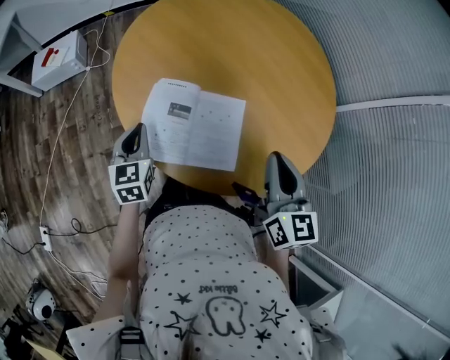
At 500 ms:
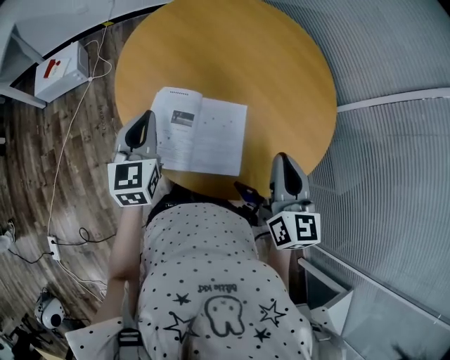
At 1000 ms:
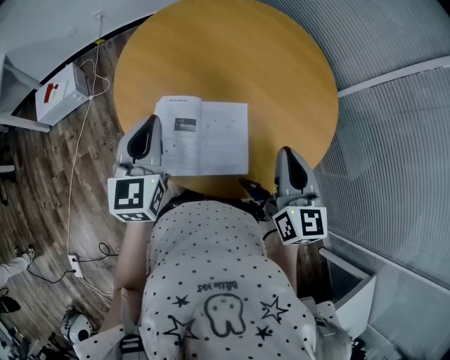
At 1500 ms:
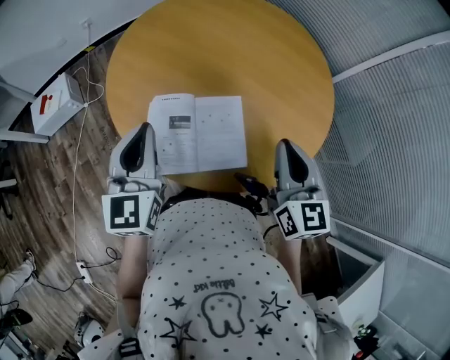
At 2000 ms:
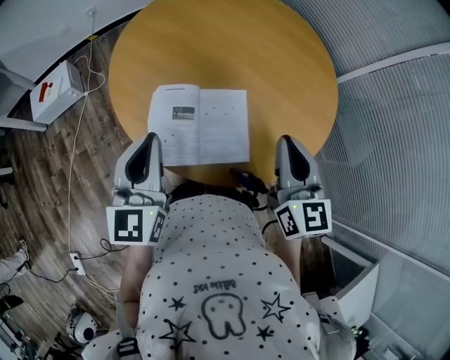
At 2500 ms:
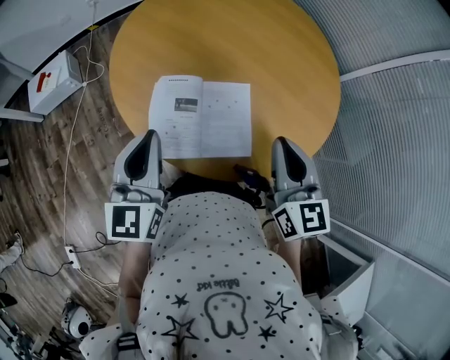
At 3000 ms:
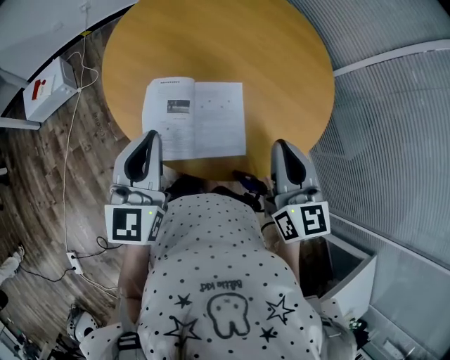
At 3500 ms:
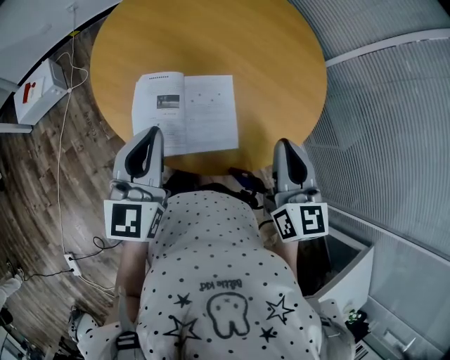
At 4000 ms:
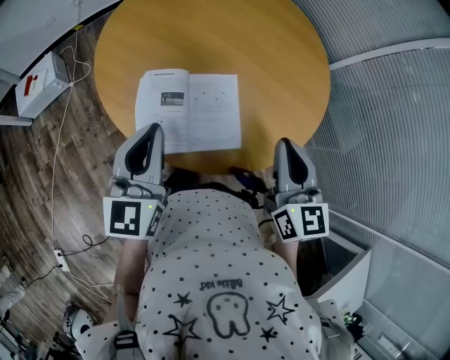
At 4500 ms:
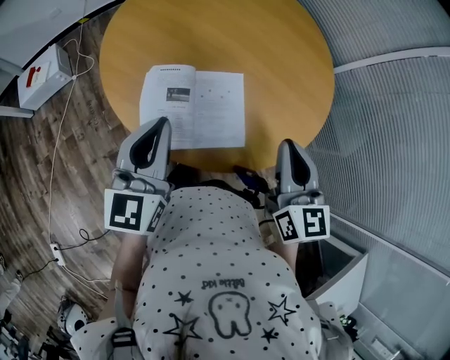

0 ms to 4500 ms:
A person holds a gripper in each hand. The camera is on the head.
0 ms to 2000 ms: The left gripper moves upward, some 15 cm, and swivels about 30 degrees.
2000 ms to 4500 ms: There are only small adjustments of the grippers.

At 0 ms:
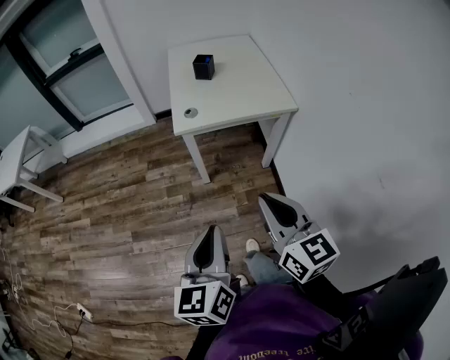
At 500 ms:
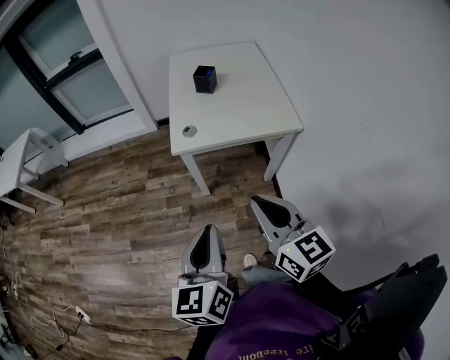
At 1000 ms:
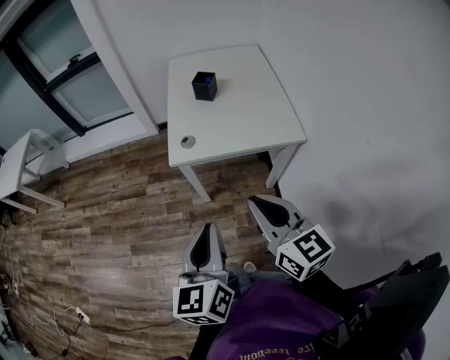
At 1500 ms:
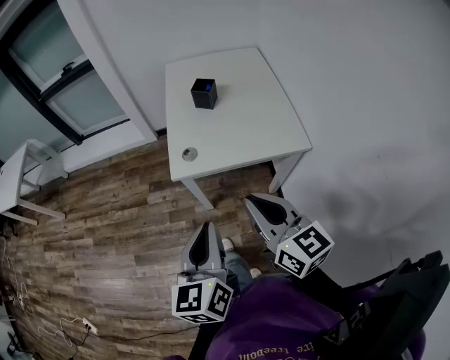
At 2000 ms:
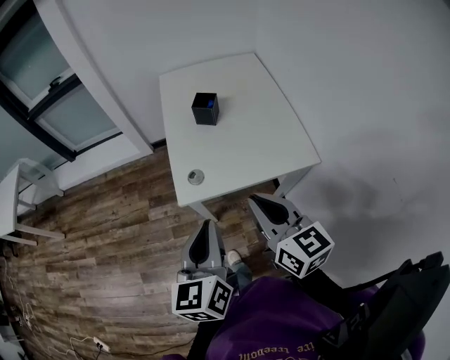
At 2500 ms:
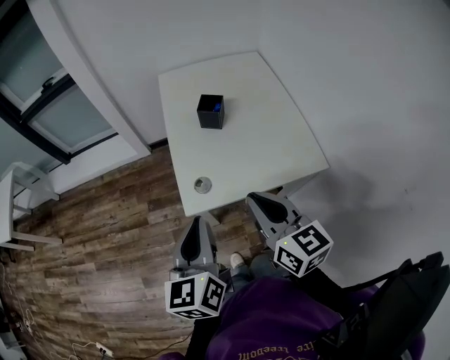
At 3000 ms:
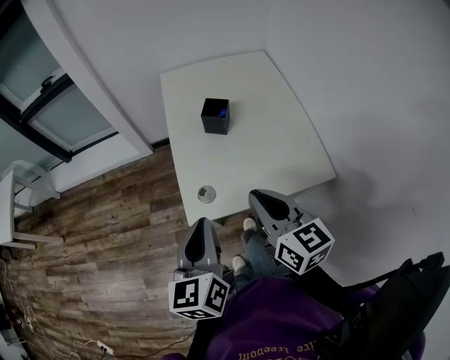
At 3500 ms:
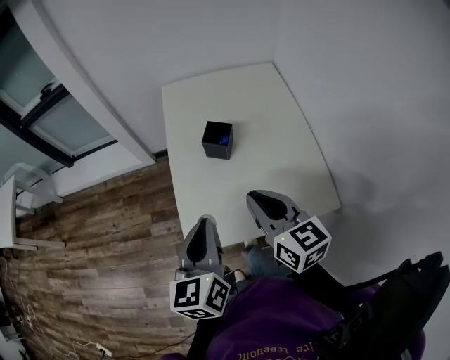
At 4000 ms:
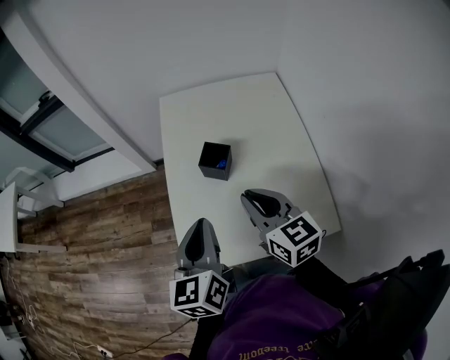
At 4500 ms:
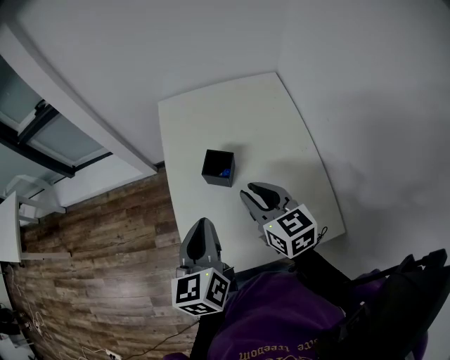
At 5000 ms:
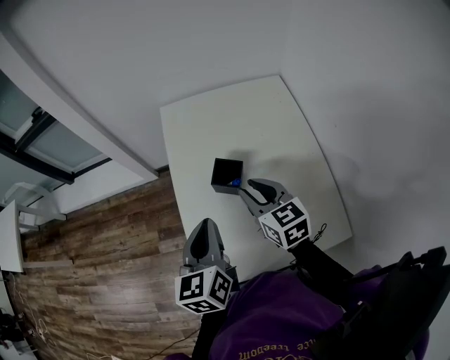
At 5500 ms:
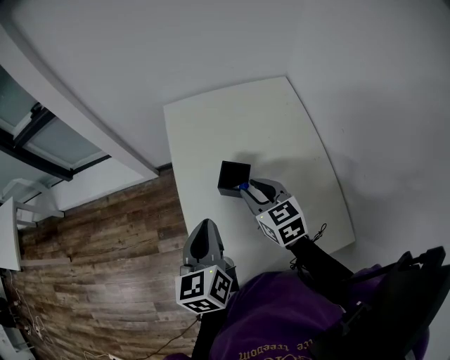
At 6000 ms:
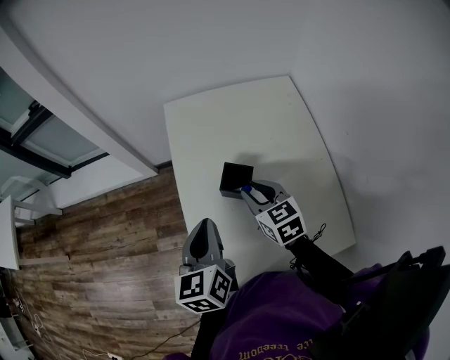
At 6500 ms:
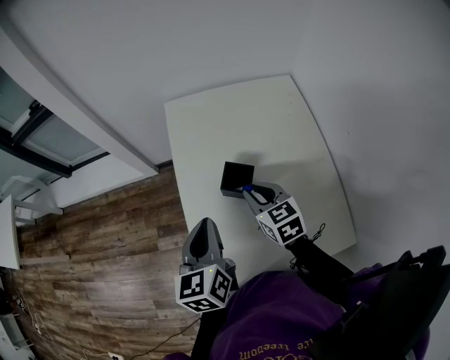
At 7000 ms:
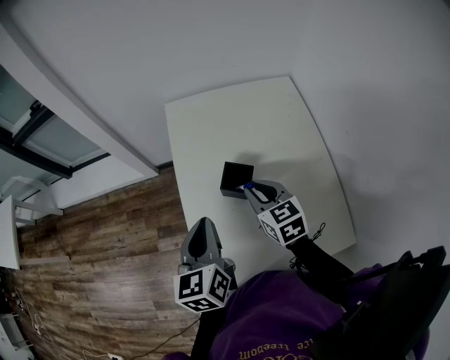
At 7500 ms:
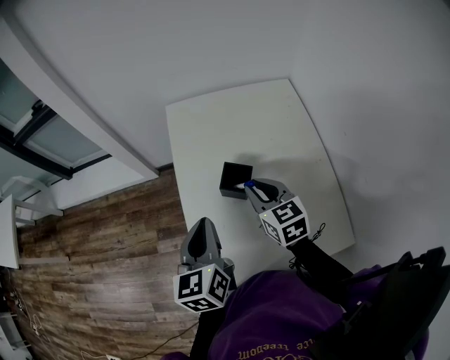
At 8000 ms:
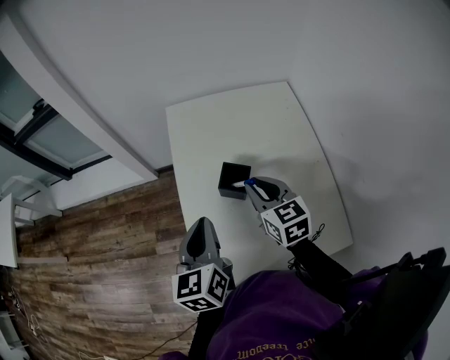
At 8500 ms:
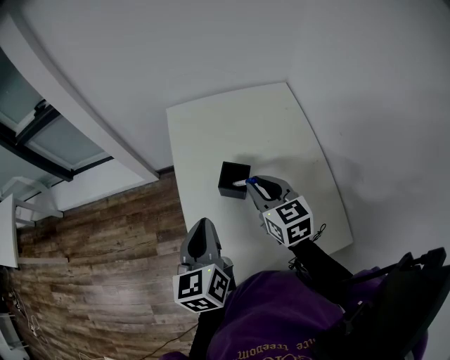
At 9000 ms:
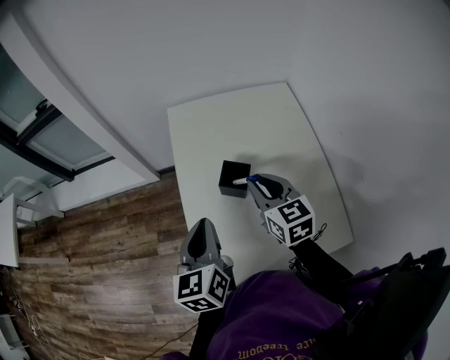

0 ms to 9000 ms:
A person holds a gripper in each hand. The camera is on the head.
0 ms to 2000 ms: The grippers both shift forward by some 30 cm.
2000 ms to 4500 ms: The grippers both shift forward by approximately 30 cm.
4500 ms to 7000 ms: The right gripper is displaced forward and downward by some 10 cm, while the left gripper is displaced forward by approximately 5 cm.
7000 ms to 9000 ms: The right gripper is displaced upward by approximately 5 cm.

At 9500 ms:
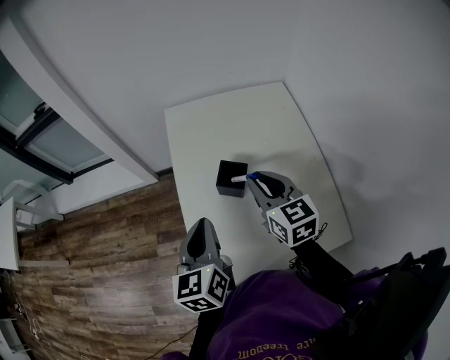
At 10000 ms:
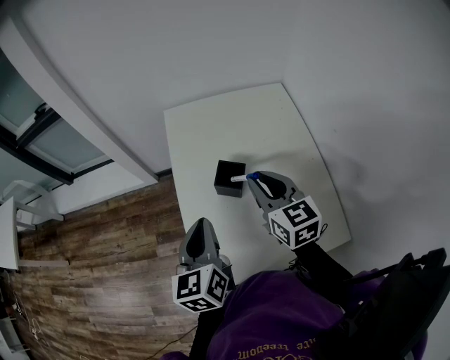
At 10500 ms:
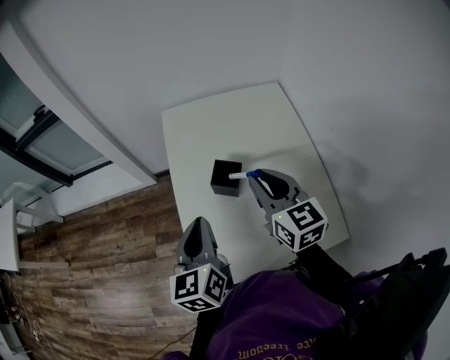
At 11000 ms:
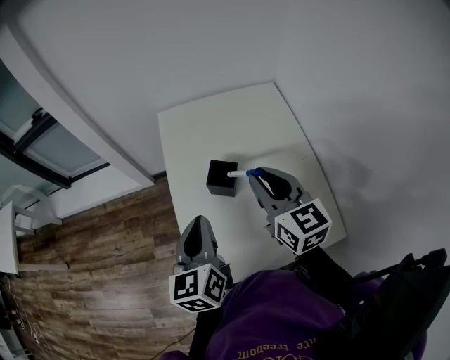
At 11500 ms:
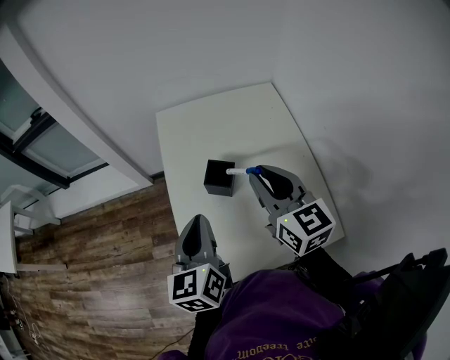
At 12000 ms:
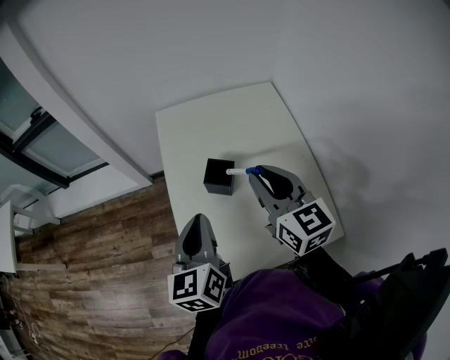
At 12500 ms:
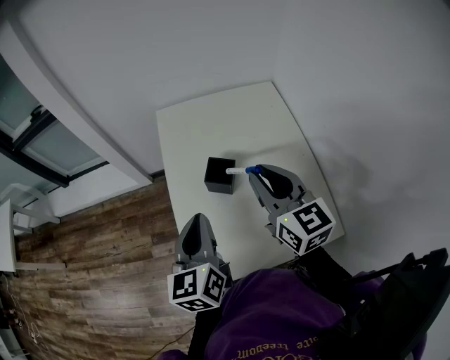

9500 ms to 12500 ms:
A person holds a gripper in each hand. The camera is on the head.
9500 ms to 11000 ms: The right gripper moves upward, roughly 5 cm.
11000 ms to 12500 ms: The grippers make only small movements.

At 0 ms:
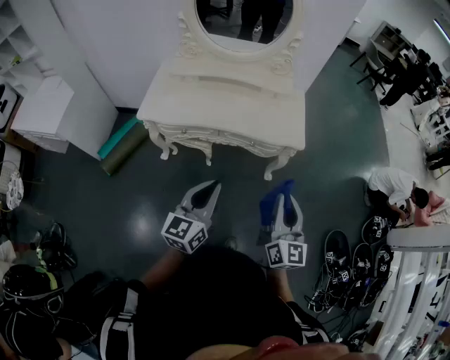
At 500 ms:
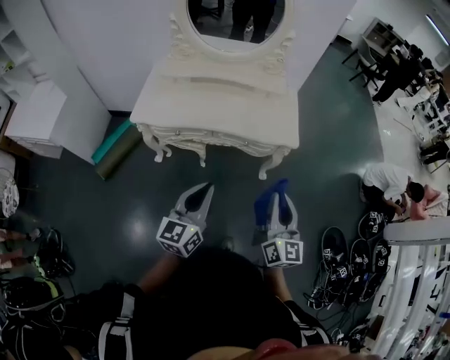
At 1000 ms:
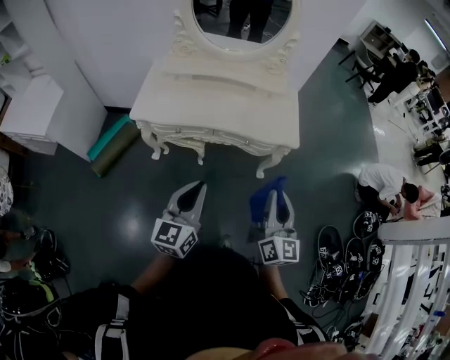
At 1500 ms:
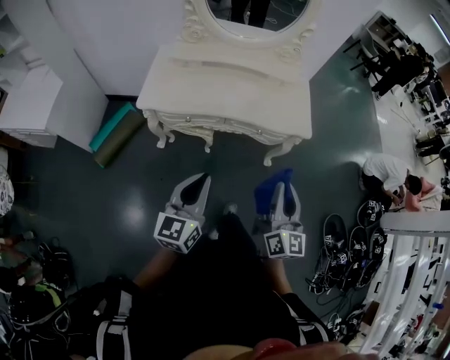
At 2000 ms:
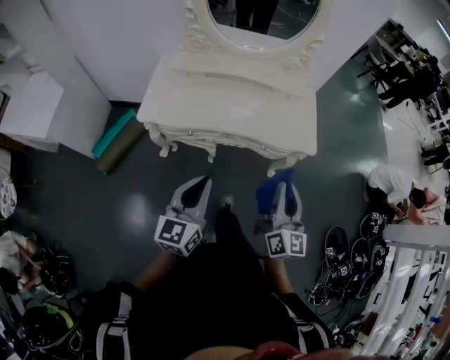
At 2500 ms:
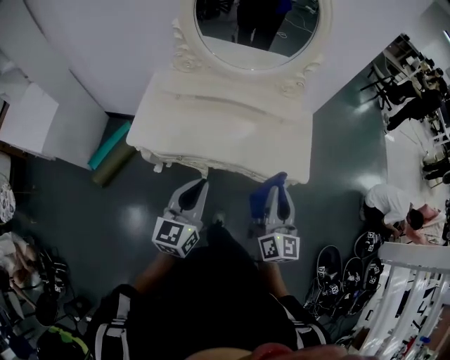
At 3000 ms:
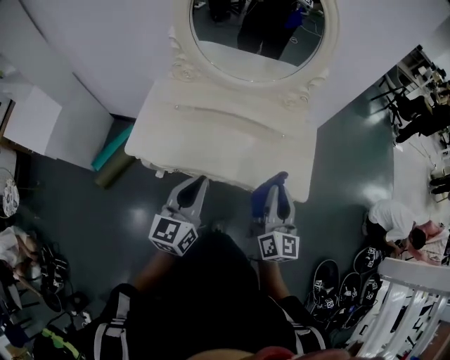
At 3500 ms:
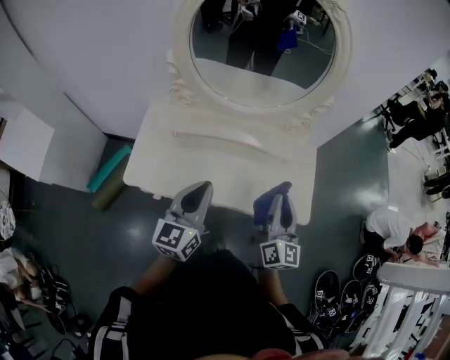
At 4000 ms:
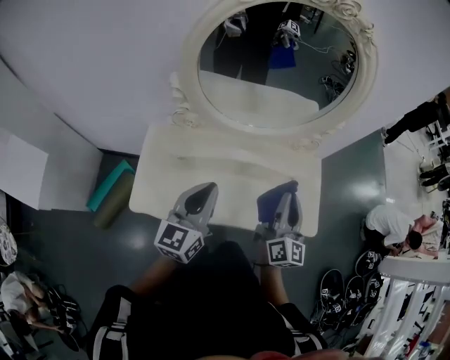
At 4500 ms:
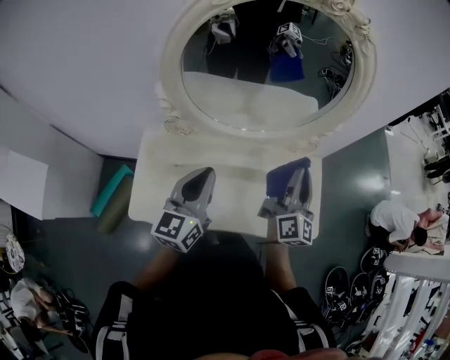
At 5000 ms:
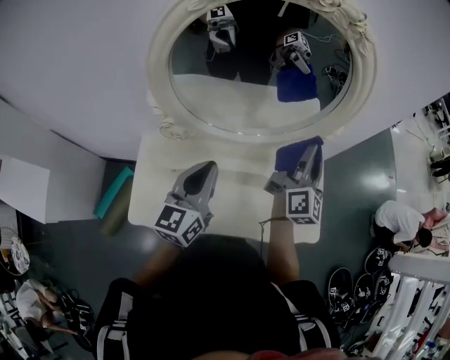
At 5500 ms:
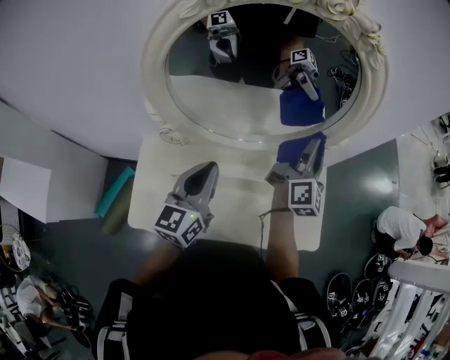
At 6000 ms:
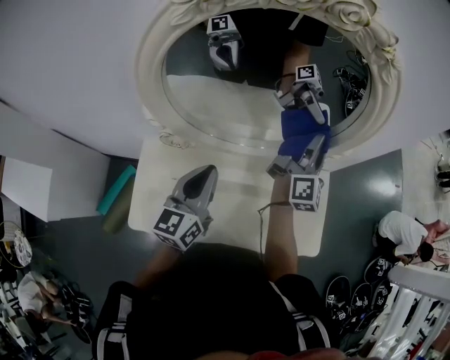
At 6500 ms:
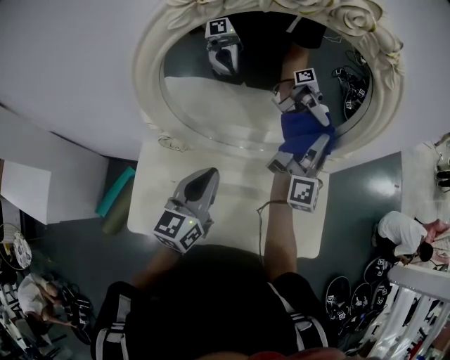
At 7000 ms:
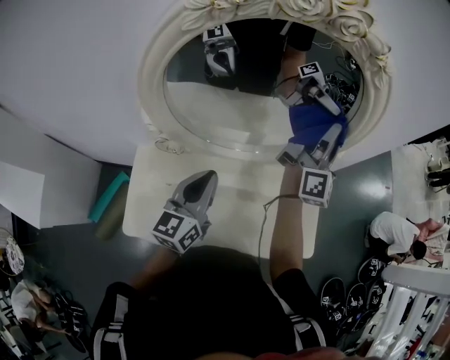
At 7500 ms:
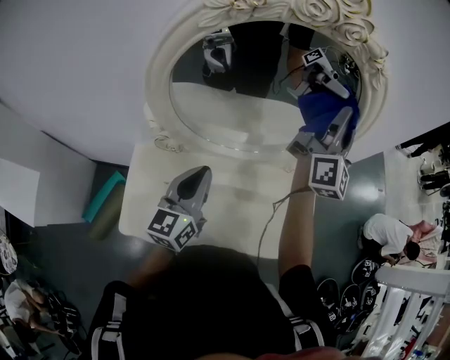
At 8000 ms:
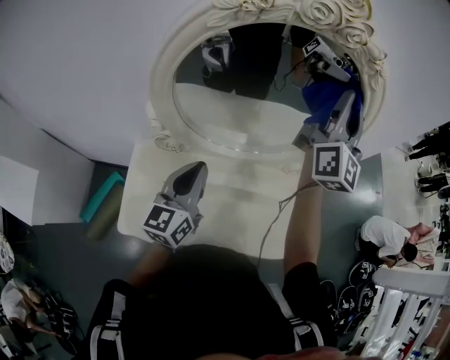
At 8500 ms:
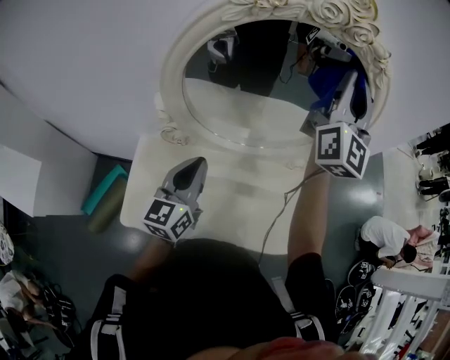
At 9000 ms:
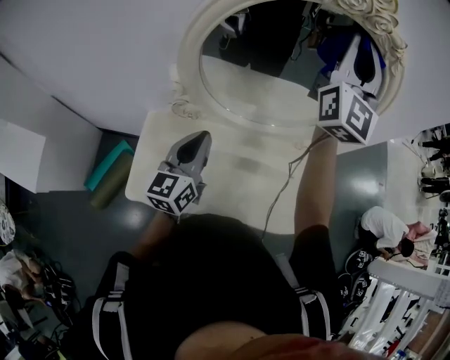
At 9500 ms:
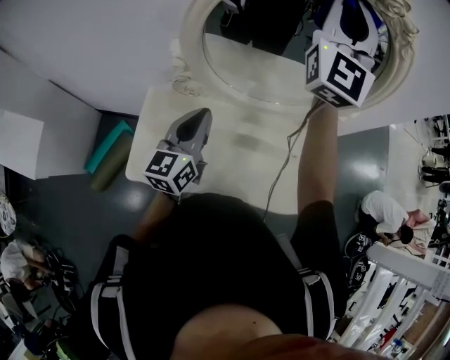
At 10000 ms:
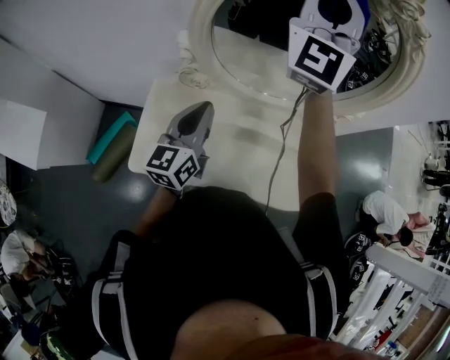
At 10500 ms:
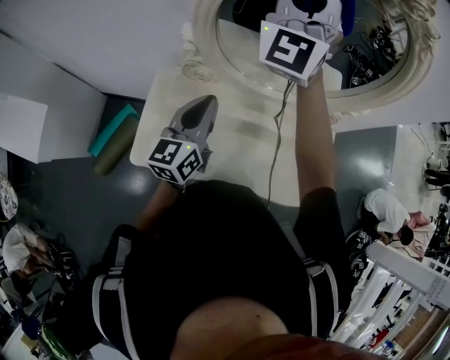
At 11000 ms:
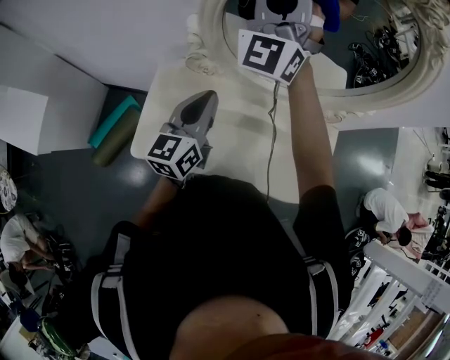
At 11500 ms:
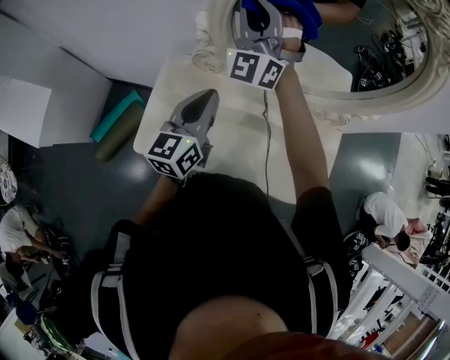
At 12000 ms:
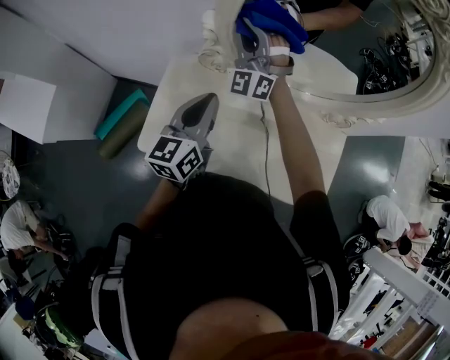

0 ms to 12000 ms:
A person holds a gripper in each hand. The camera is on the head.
0 ms to 2000 ms: Both grippers travel together to the left and forward, some 15 cm.
2000 ms to 4000 ms: The pair of grippers is taken forward, about 40 cm.
4000 ms to 6000 ms: The right gripper heads forward, covering about 30 cm, and turns by some 30 degrees, while the left gripper heads forward, covering roughly 20 cm.
6000 ms to 8000 ms: The right gripper shifts roughly 20 cm upward, and changes its angle by about 30 degrees.
8000 ms to 10000 ms: The right gripper travels to the left by some 20 cm, and rotates approximately 40 degrees. The left gripper goes about 5 cm to the left.
10000 ms to 12000 ms: The right gripper goes roughly 30 cm downward and to the left, and changes its angle by roughly 30 degrees.
